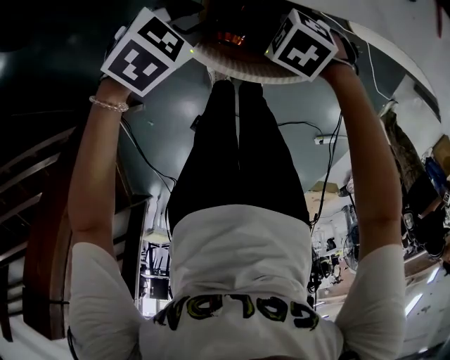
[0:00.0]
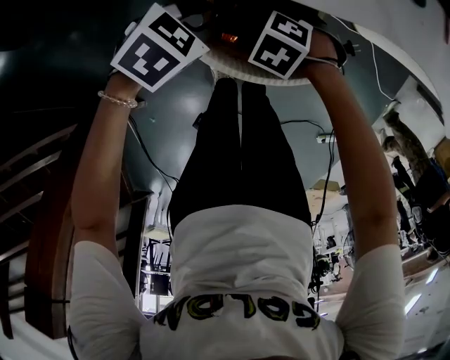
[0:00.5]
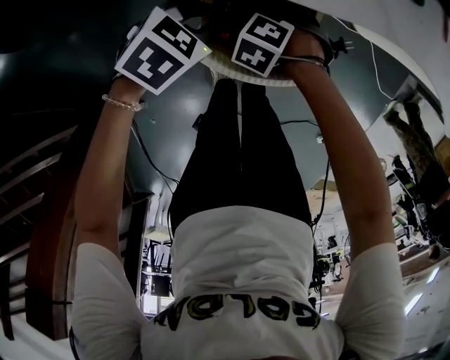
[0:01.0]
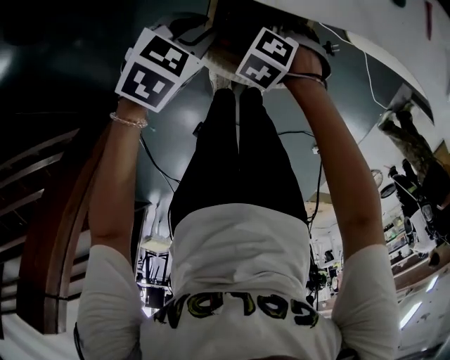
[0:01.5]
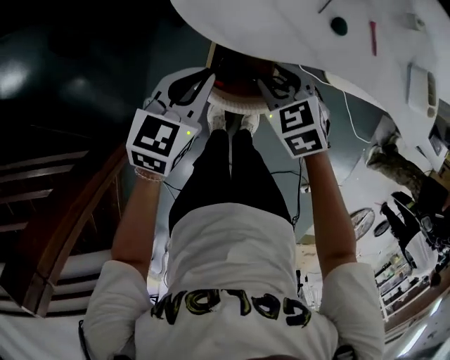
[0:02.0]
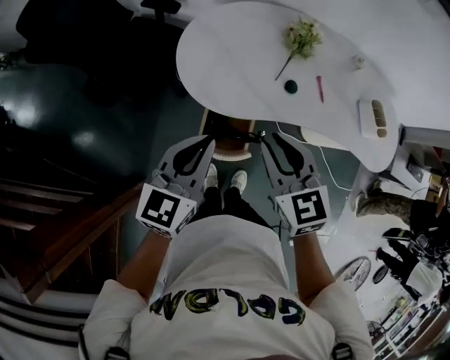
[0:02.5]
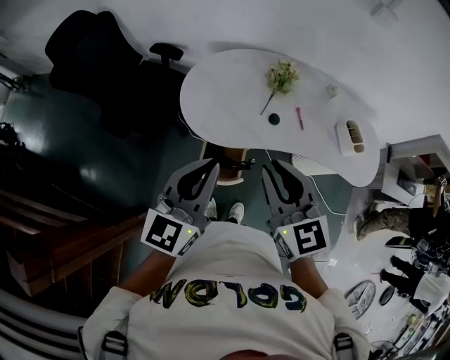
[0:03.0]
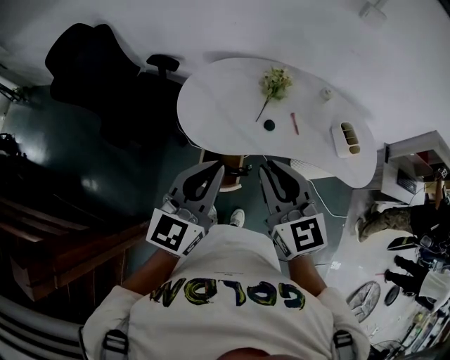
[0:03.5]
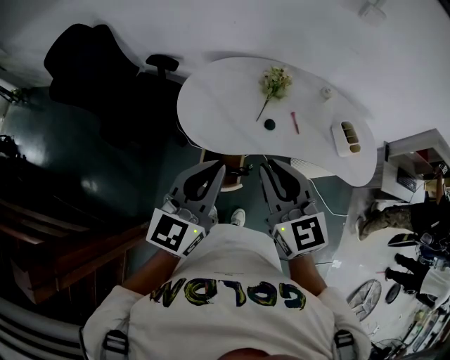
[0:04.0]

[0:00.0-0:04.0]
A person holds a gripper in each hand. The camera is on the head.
0:00.0 to 0:02.0: The grippers both shift upward by roughly 20 cm. The right gripper rotates some 40 degrees; the left gripper changes its angle by approximately 40 degrees, and closes its fingers.
0:02.0 to 0:04.0: The grippers both shift upward by roughly 35 cm. The right gripper angles its fingers upward, by approximately 40 degrees, and closes up. The left gripper angles its fingers upward, by some 30 degrees.

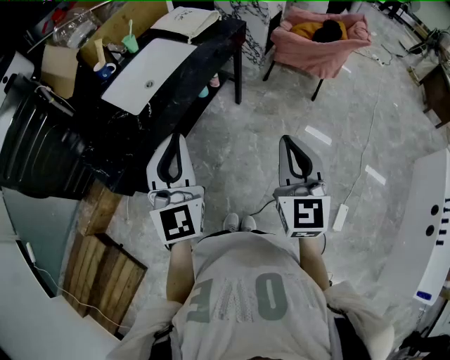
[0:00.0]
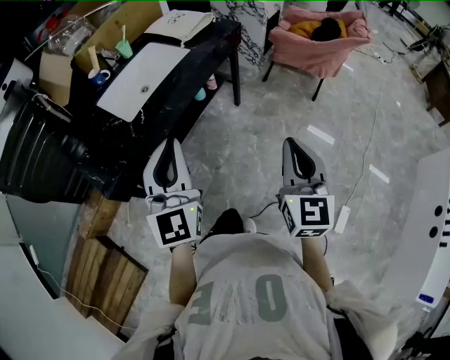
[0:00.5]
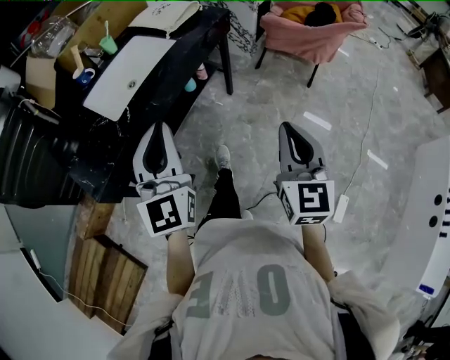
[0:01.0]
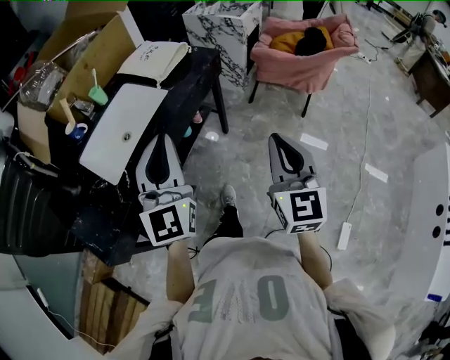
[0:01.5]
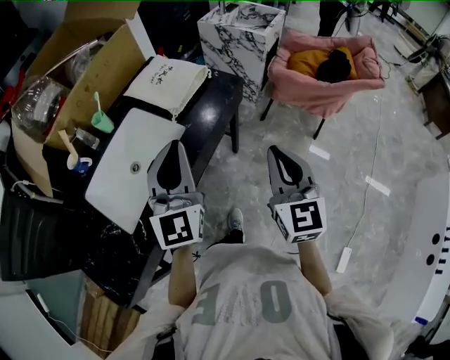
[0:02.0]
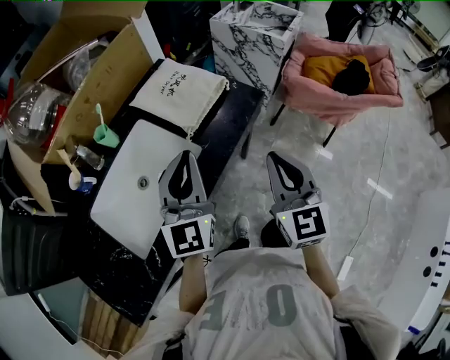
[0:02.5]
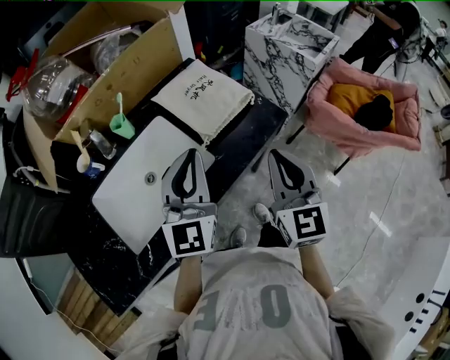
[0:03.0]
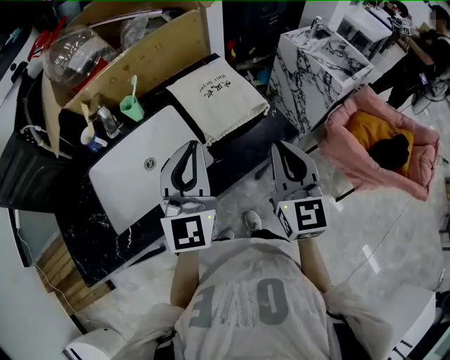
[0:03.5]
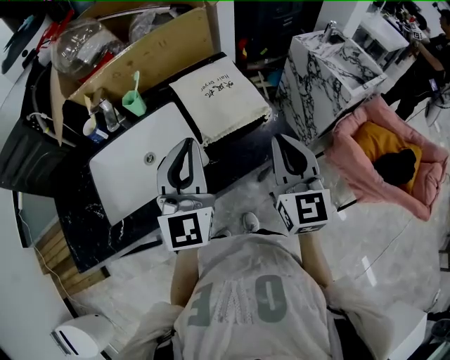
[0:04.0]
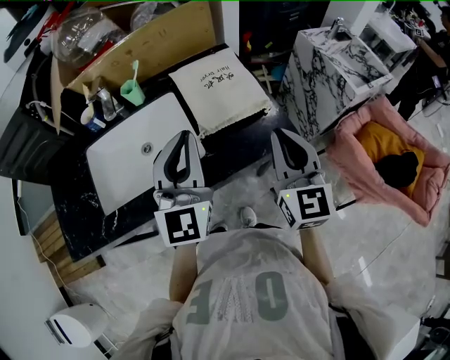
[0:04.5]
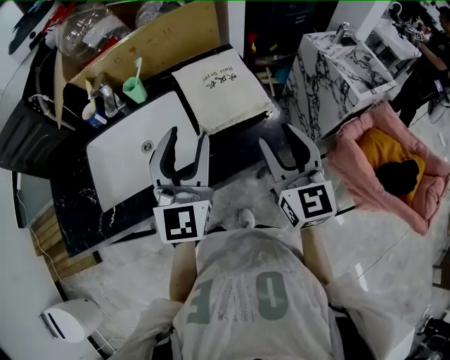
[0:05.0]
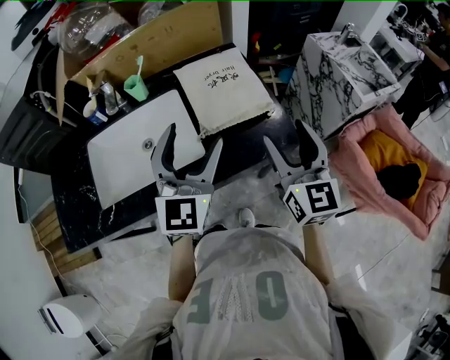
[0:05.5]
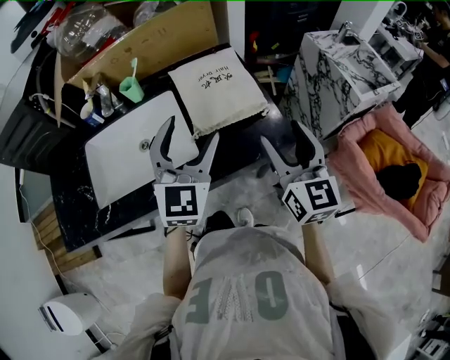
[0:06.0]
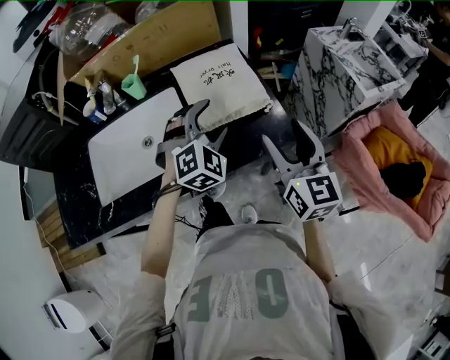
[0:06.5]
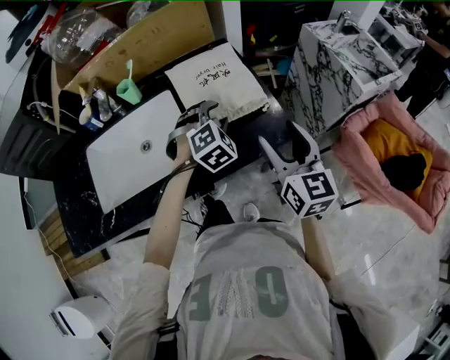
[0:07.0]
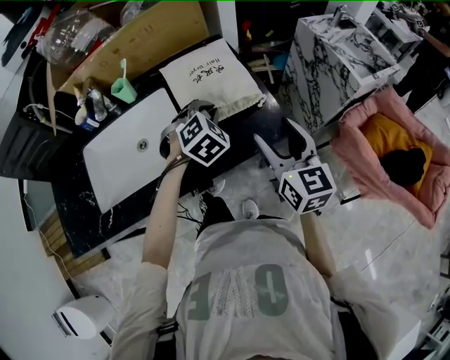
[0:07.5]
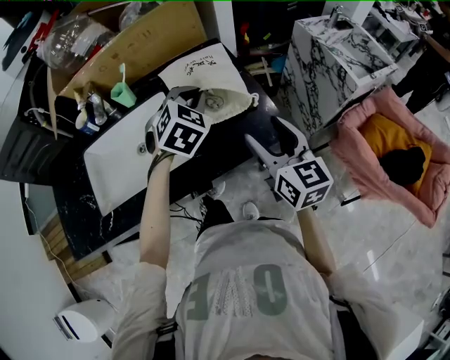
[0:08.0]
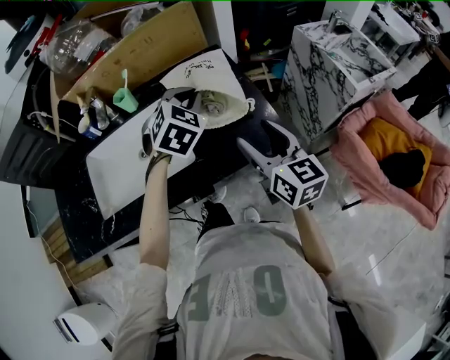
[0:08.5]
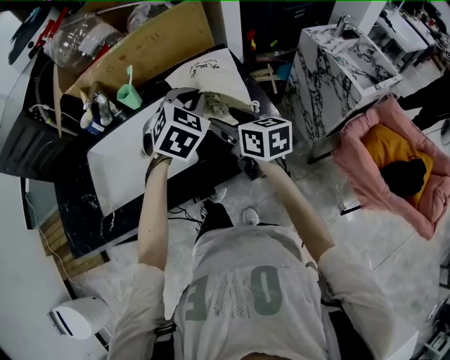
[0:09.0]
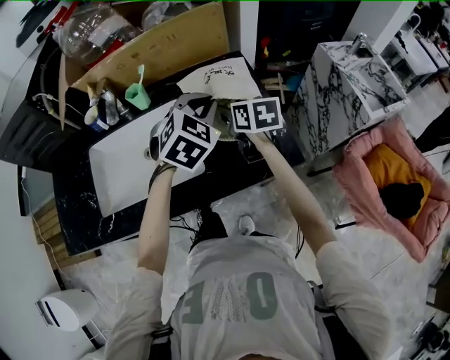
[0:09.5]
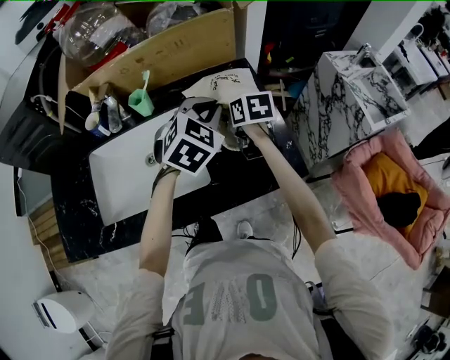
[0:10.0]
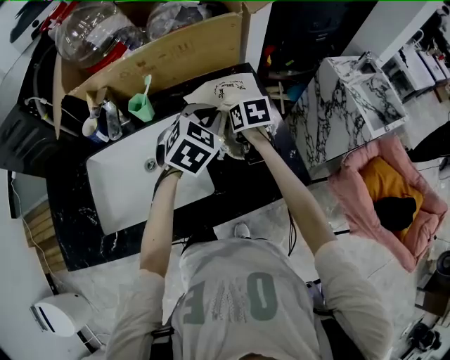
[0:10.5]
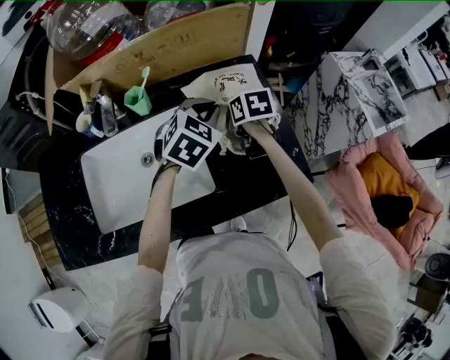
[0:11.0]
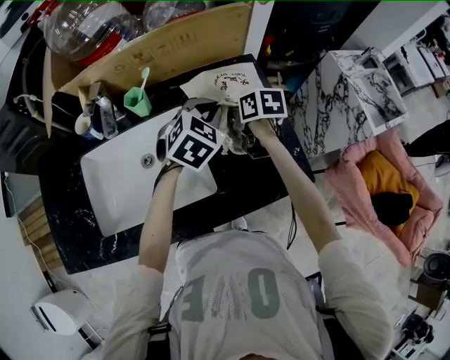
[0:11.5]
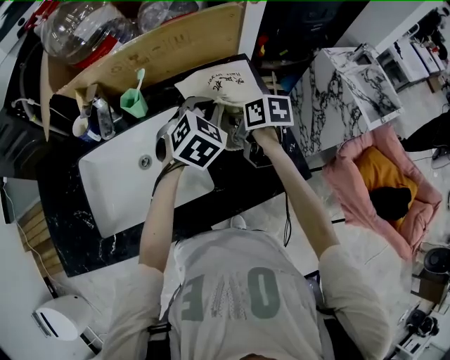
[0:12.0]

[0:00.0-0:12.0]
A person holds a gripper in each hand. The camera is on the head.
0:00.0 to 0:02.0: Both grippers move forward, some 40 cm.
0:02.0 to 0:04.0: The left gripper shifts by about 15 cm, and swivels some 30 degrees. Meanwhile the right gripper ends up about 30 cm from where it was, and rotates approximately 30 degrees.
0:04.0 to 0:06.0: The left gripper moves some 5 cm, and opens up, while the right gripper ends up roughly 5 cm from where it was, and opens its fingers.
0:06.0 to 0:08.0: The left gripper goes roughly 15 cm forward and downward, points its fingers some 30 degrees further downward, and closes.
0:08.0 to 0:10.0: The left gripper moves roughly 5 cm; the right gripper heads forward, to the left and downward, covering some 30 cm, and angles its fingers downward, by some 30 degrees.
0:10.0 to 0:12.0: The left gripper goes roughly 5 cm downward.

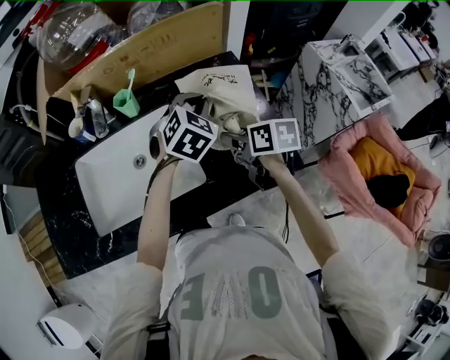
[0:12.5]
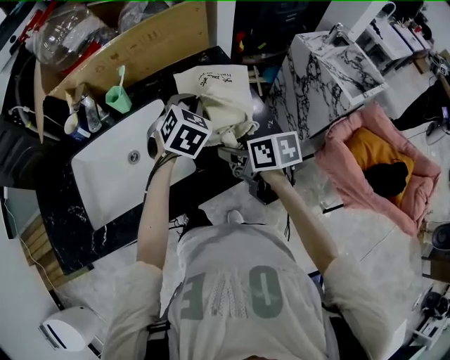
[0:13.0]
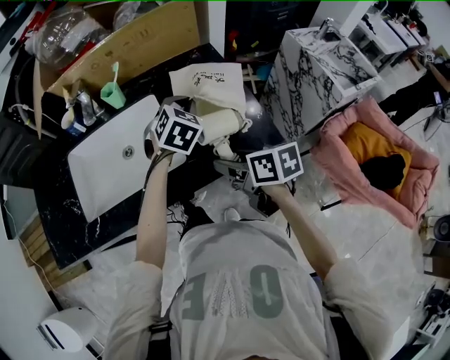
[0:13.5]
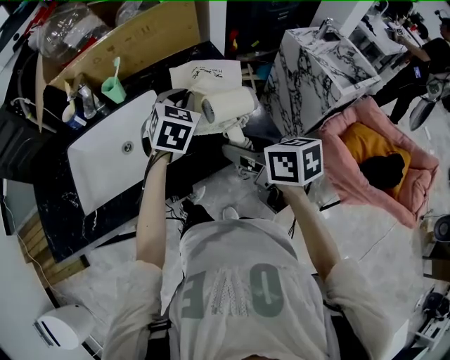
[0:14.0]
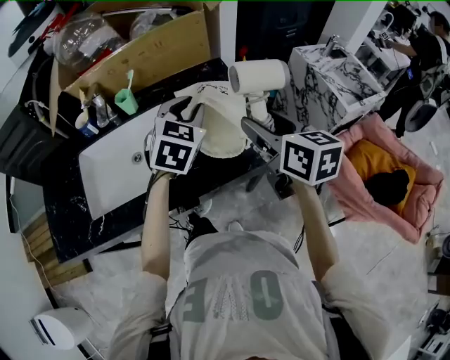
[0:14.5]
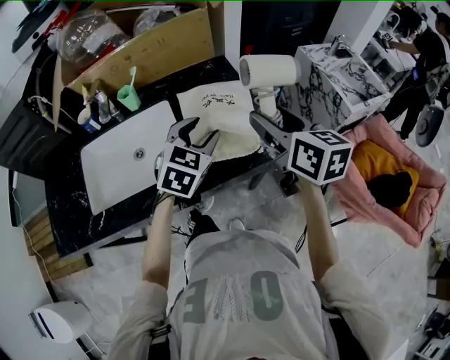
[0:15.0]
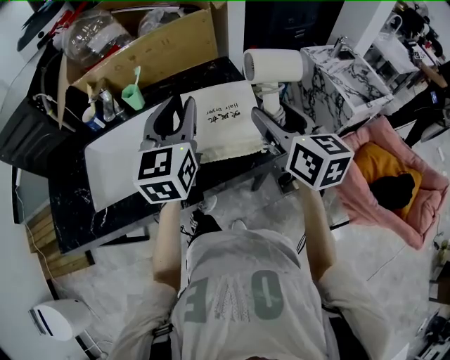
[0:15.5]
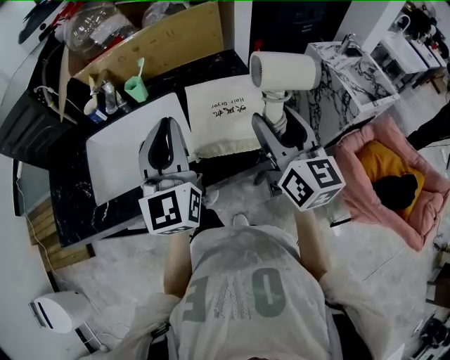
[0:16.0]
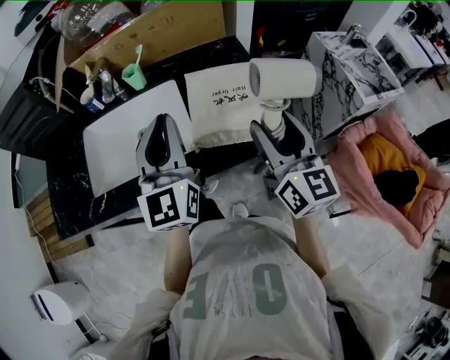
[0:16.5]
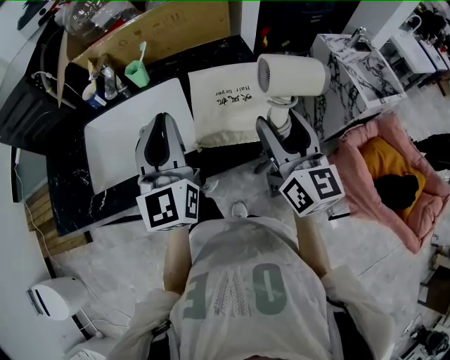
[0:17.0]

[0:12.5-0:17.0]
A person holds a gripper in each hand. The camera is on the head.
0:12.5 to 0:14.5: The right gripper heads upward, backward and to the right, covering some 20 cm, and turns by roughly 30 degrees. Meanwhile the left gripper heads backward and upward, covering approximately 10 cm.
0:14.5 to 0:17.0: The left gripper goes some 15 cm to the left, backward and upward, tilts its fingers some 40 degrees upward, and opens, then closes once more; the right gripper rotates approximately 20 degrees.

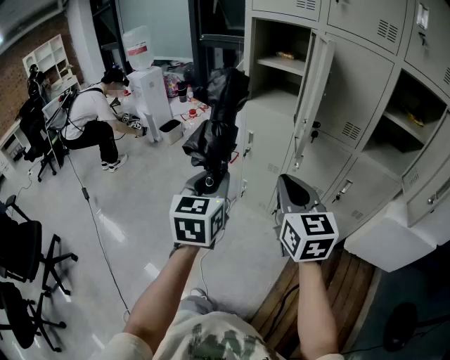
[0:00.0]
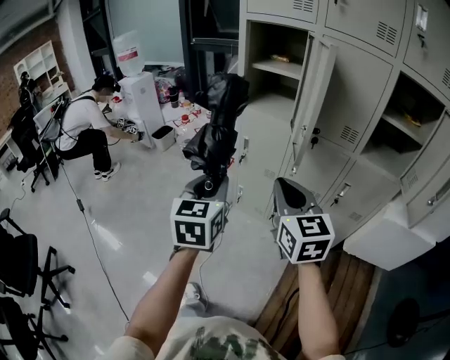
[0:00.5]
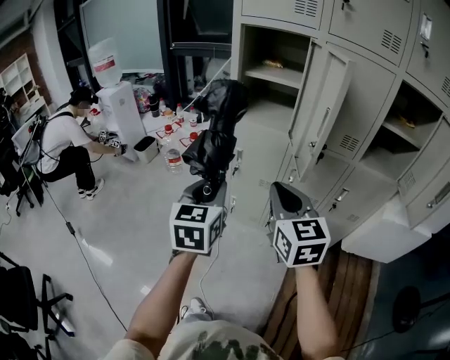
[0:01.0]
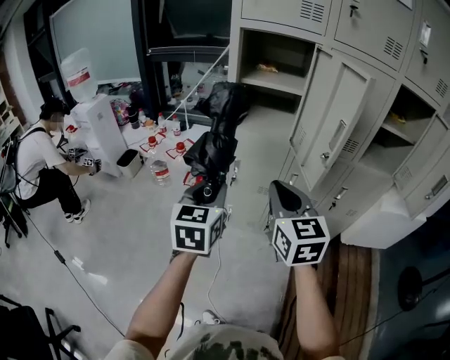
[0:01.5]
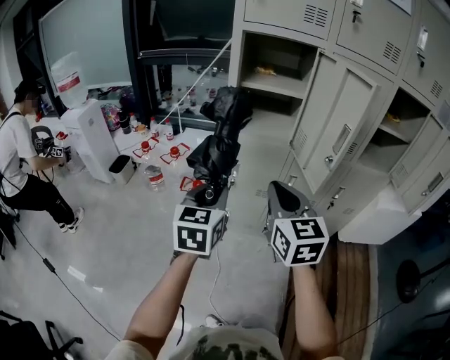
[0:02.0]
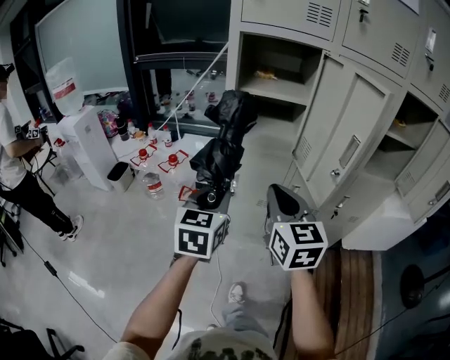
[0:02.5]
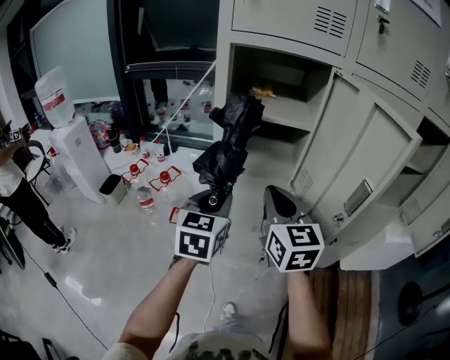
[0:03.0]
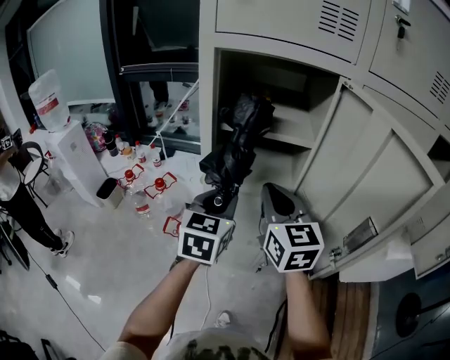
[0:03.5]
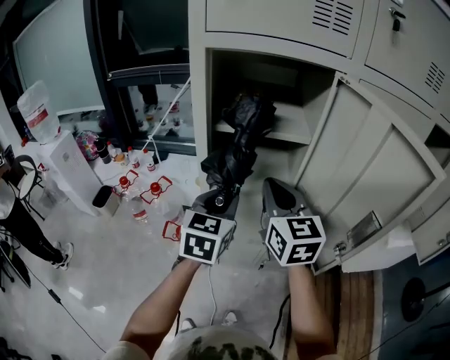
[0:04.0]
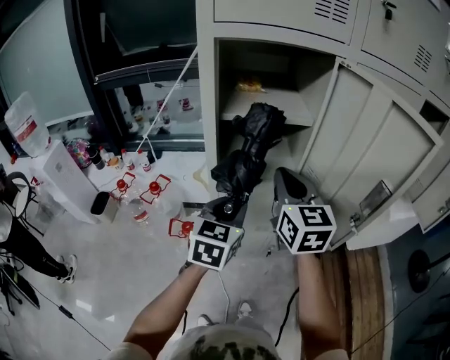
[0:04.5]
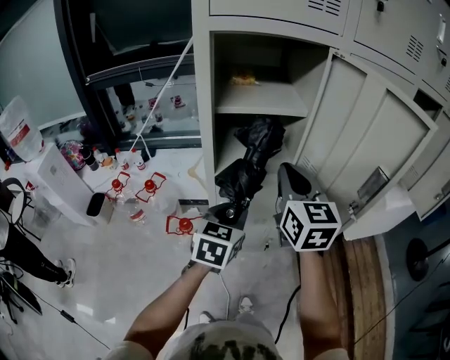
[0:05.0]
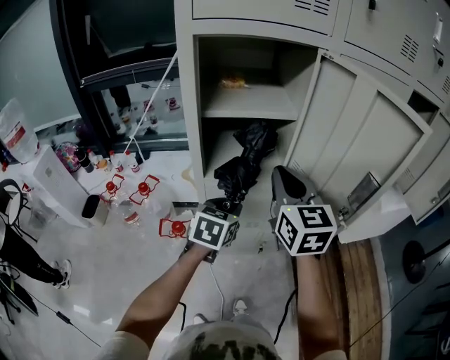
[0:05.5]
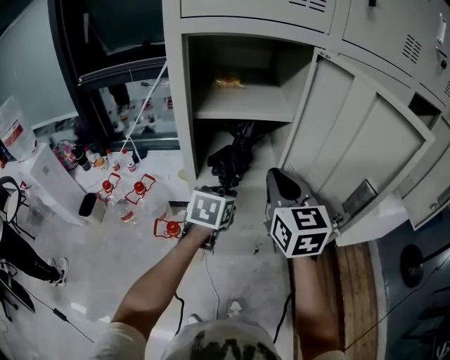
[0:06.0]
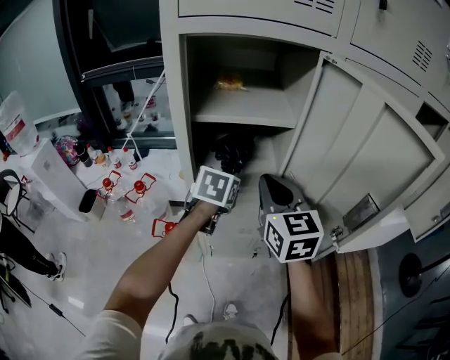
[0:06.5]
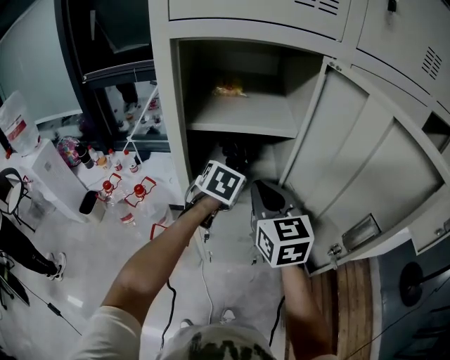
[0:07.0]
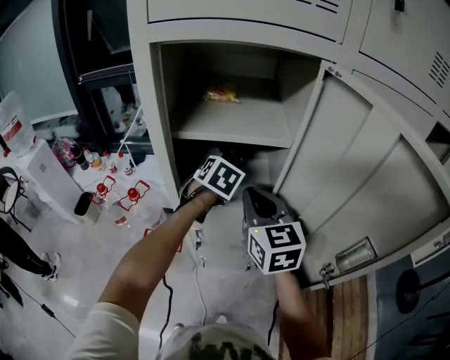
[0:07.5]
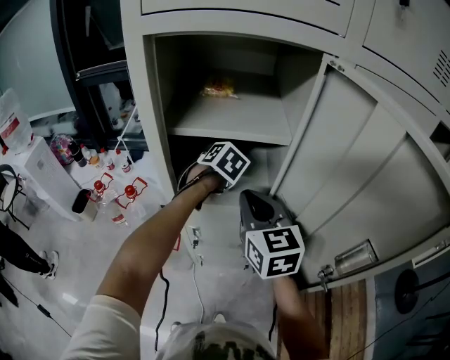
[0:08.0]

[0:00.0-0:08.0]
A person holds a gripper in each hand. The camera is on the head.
0:00.0 to 0:02.0: Both grippers move forward and to the left, about 20 cm. The left gripper turns by about 20 degrees; the right gripper changes its angle by some 20 degrees.
0:02.0 to 0:04.0: The grippers both shift forward by about 25 cm.
0:04.0 to 0:06.0: The left gripper goes some 10 cm downward, and rotates about 20 degrees.
0:06.0 to 0:08.0: The right gripper is displaced forward and downward by some 10 cm; the left gripper moves forward, about 20 cm, and rotates approximately 30 degrees.
